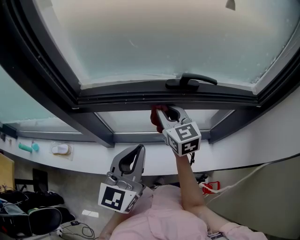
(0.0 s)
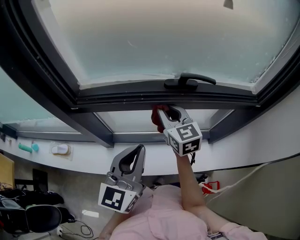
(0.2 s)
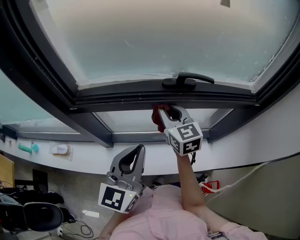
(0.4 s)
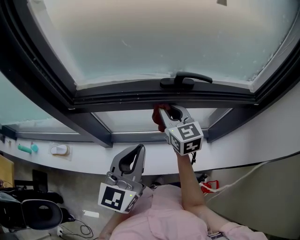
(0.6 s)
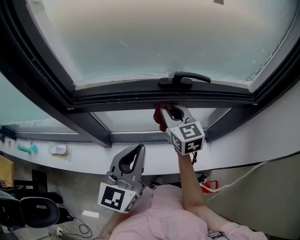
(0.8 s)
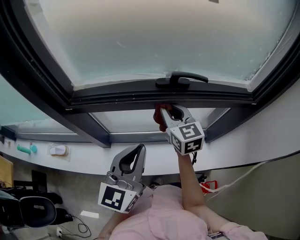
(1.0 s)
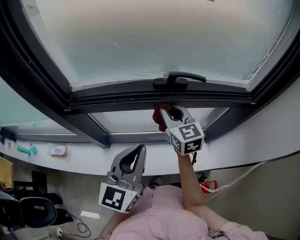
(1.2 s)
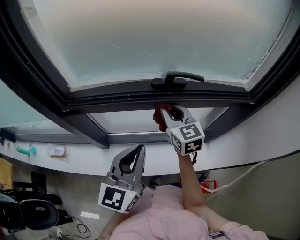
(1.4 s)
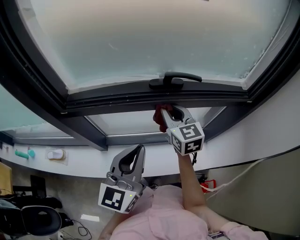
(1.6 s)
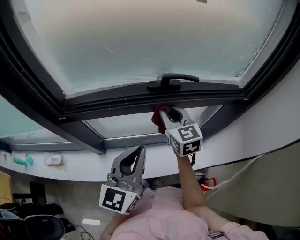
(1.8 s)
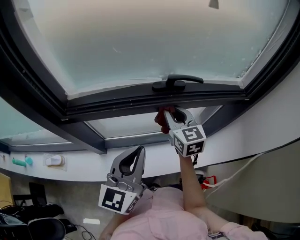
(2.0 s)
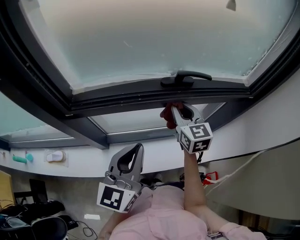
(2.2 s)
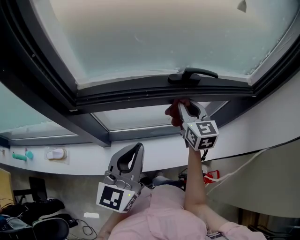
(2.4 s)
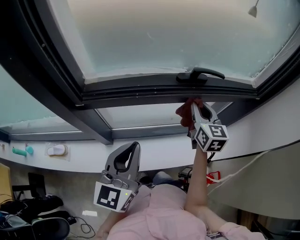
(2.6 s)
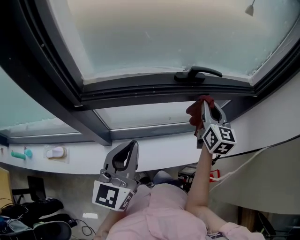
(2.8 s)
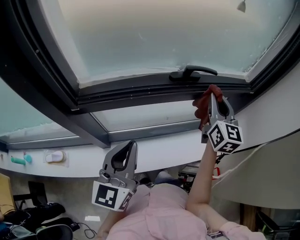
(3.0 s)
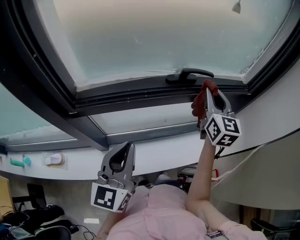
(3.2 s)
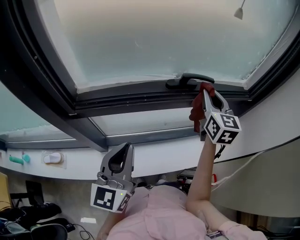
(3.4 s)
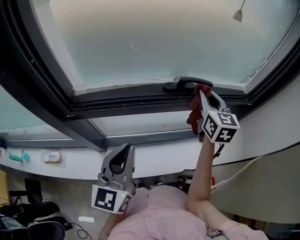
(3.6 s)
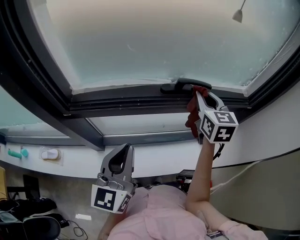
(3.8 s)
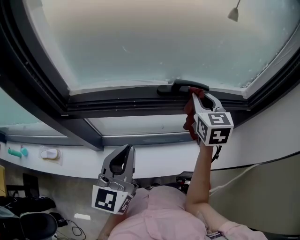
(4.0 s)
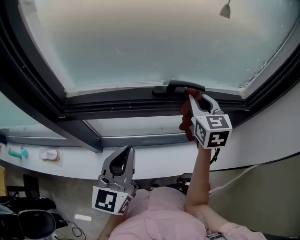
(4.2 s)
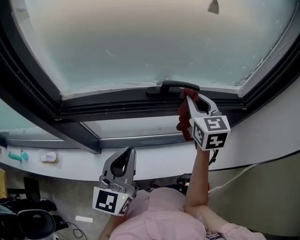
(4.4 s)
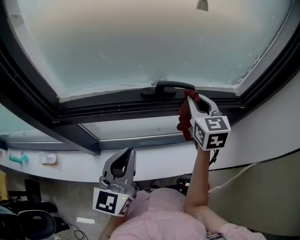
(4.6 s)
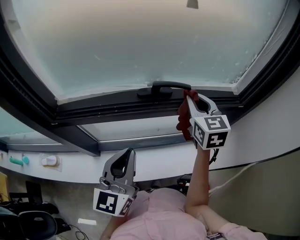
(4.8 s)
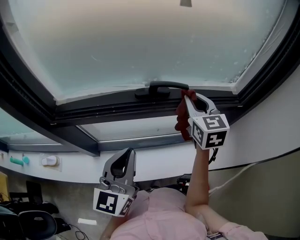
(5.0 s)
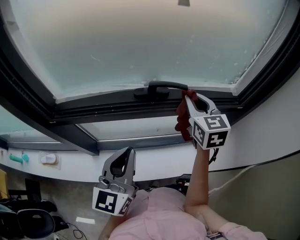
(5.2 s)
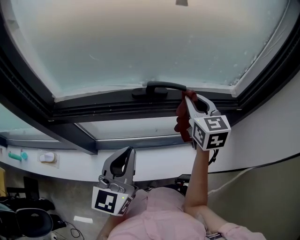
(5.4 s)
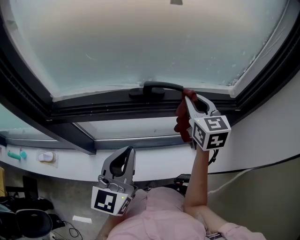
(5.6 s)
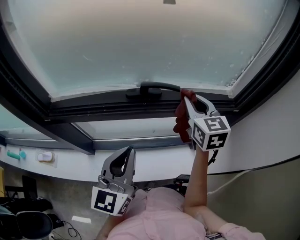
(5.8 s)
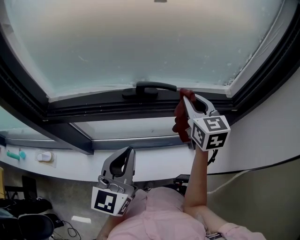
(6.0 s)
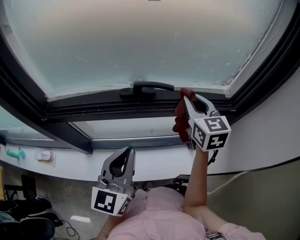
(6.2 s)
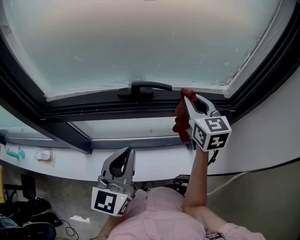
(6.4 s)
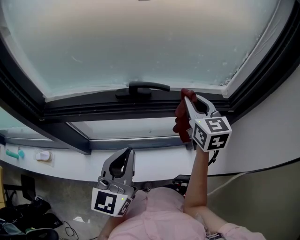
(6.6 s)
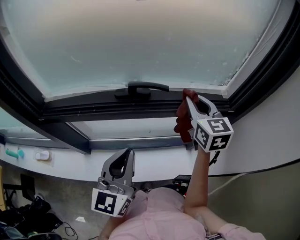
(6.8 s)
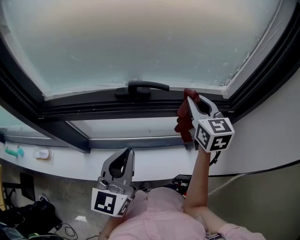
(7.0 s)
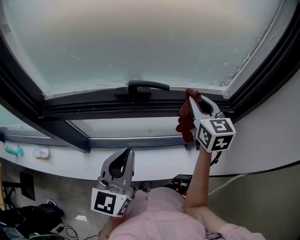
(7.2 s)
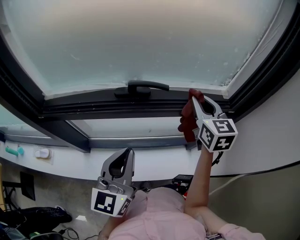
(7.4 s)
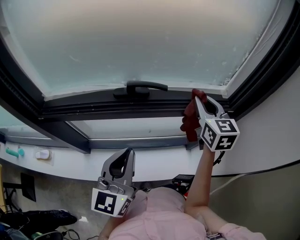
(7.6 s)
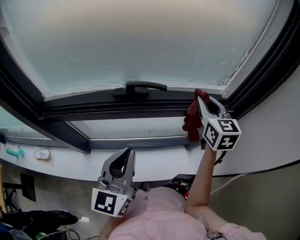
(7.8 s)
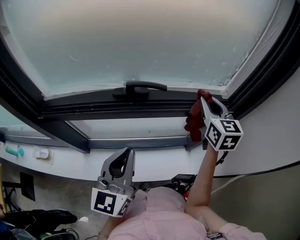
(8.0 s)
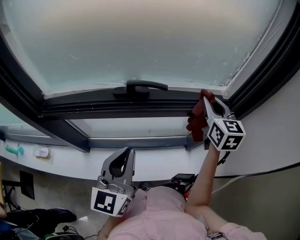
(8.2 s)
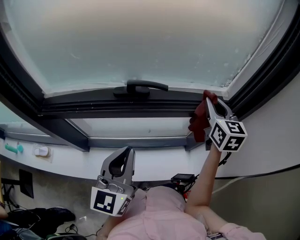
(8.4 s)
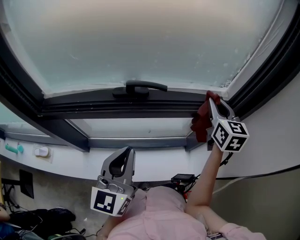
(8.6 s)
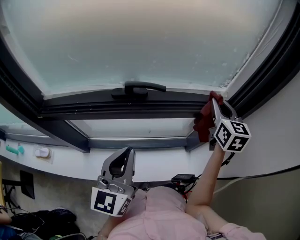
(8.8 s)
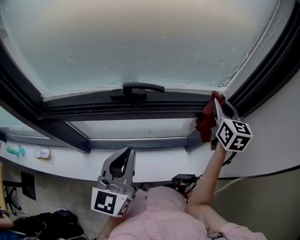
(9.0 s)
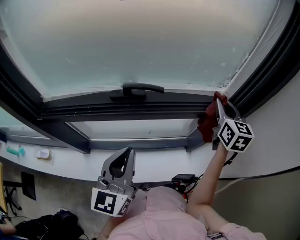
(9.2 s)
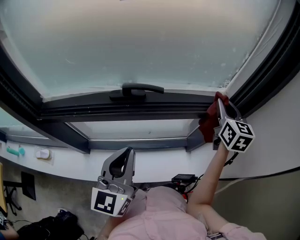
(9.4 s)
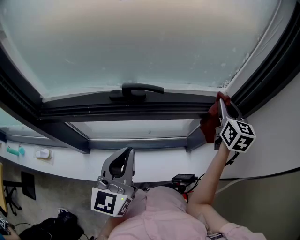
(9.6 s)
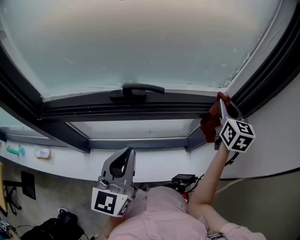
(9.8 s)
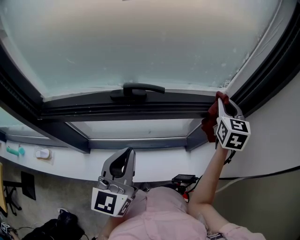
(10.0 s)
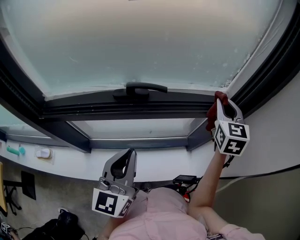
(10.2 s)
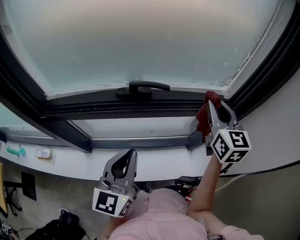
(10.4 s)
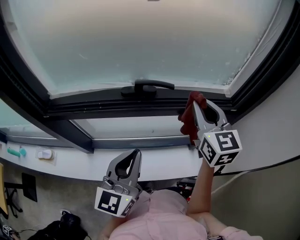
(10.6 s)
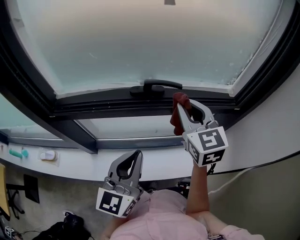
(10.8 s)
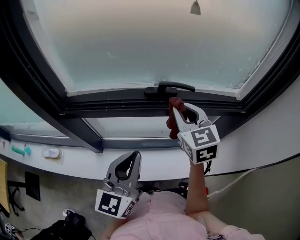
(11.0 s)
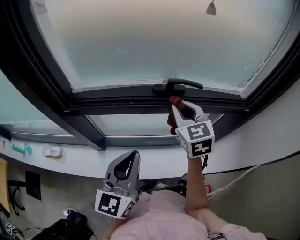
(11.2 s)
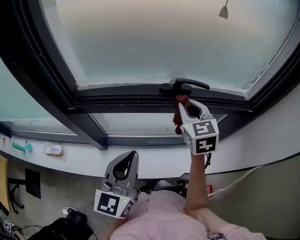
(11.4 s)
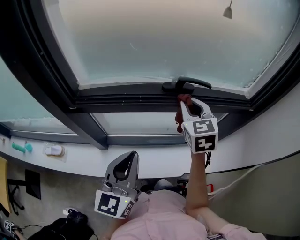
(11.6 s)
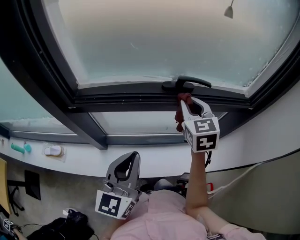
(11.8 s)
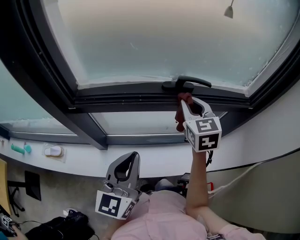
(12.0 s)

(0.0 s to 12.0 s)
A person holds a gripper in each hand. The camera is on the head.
0.0 s - 1.6 s: The right gripper heads to the right, covering approximately 5 cm.
1.6 s - 3.0 s: The right gripper shifts approximately 15 cm to the right and upward, and changes its angle by roughly 30 degrees. Meanwhile the left gripper travels to the left by some 10 cm.
3.0 s - 4.4 s: The right gripper goes about 5 cm forward, and swivels some 20 degrees, while the left gripper heads to the right, covering roughly 10 cm.
4.4 s - 6.0 s: Both grippers travel together to the right, approximately 5 cm.
6.0 s - 7.6 s: The right gripper shifts about 5 cm to the right.
7.6 s - 9.0 s: The right gripper goes approximately 10 cm to the right.
9.0 s - 10.4 s: The right gripper goes roughly 10 cm to the left and backward.
10.4 s - 12.0 s: The left gripper heads to the left, covering about 15 cm. Meanwhile the right gripper travels to the left by approximately 25 cm.

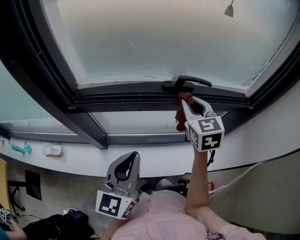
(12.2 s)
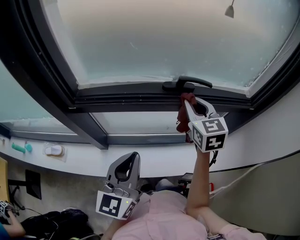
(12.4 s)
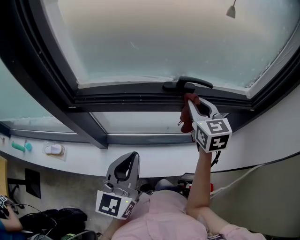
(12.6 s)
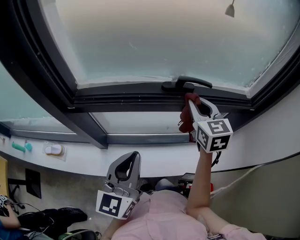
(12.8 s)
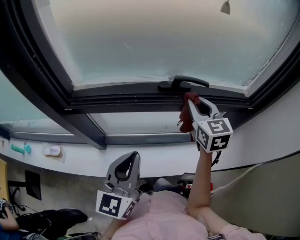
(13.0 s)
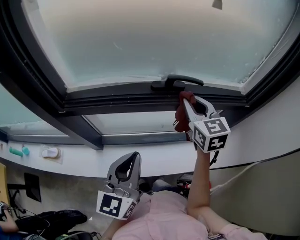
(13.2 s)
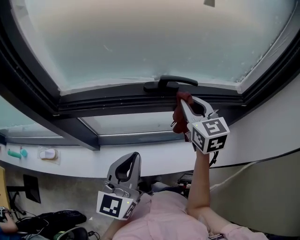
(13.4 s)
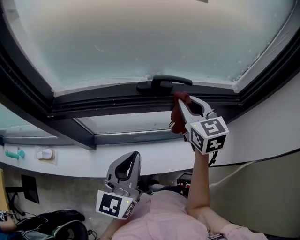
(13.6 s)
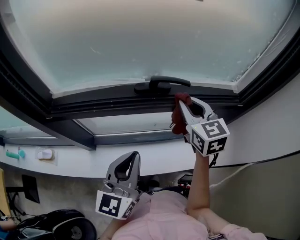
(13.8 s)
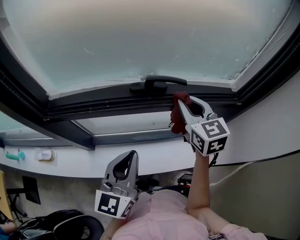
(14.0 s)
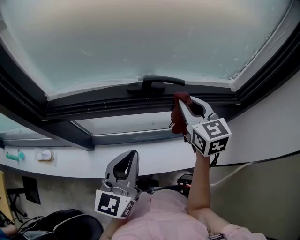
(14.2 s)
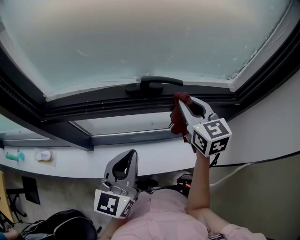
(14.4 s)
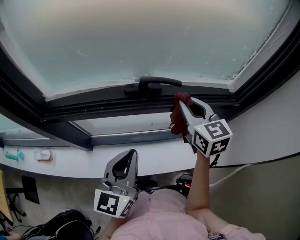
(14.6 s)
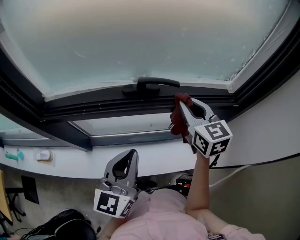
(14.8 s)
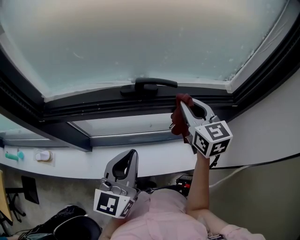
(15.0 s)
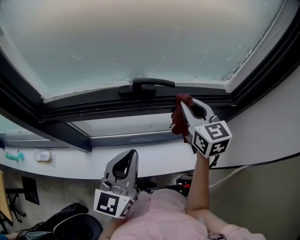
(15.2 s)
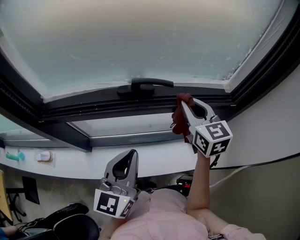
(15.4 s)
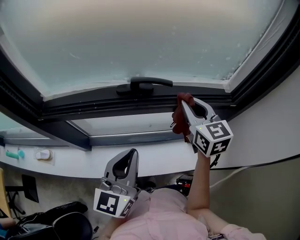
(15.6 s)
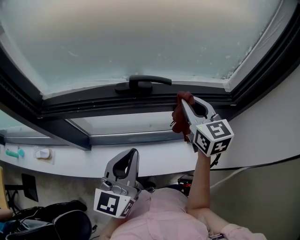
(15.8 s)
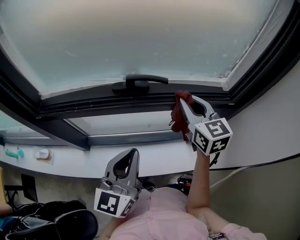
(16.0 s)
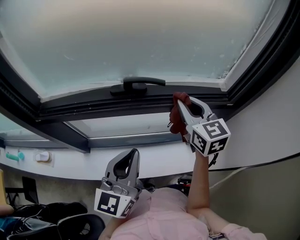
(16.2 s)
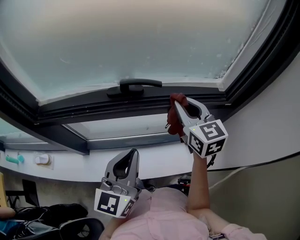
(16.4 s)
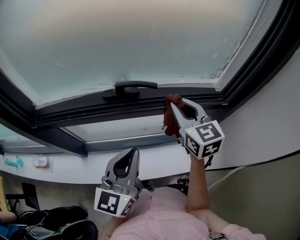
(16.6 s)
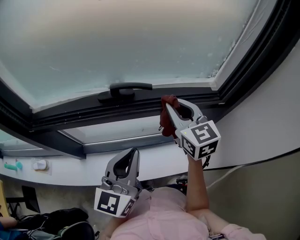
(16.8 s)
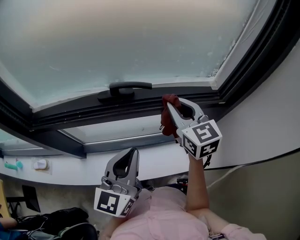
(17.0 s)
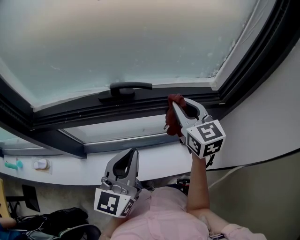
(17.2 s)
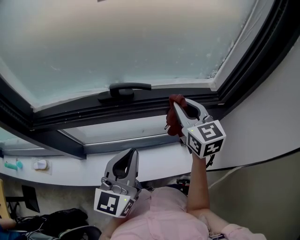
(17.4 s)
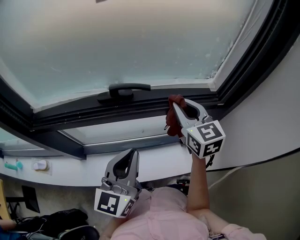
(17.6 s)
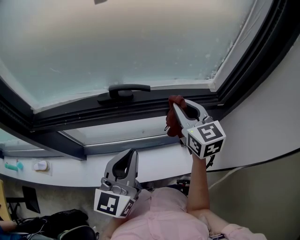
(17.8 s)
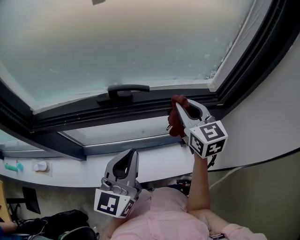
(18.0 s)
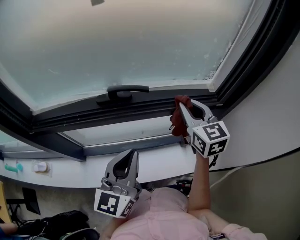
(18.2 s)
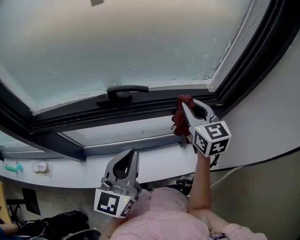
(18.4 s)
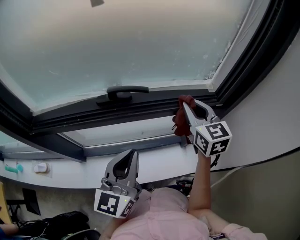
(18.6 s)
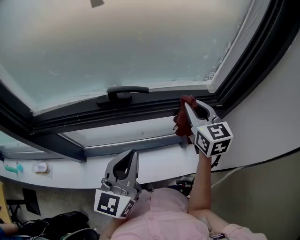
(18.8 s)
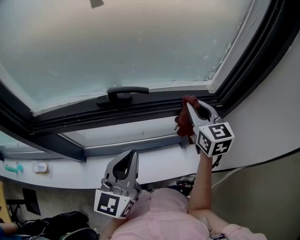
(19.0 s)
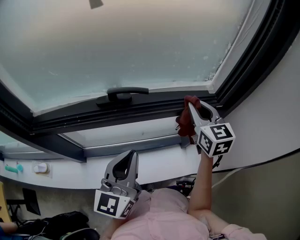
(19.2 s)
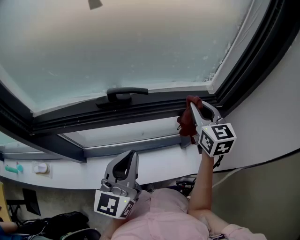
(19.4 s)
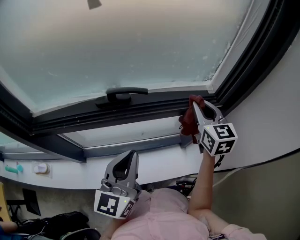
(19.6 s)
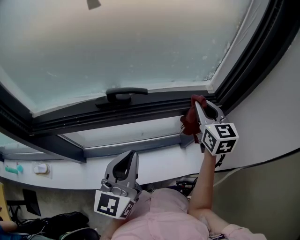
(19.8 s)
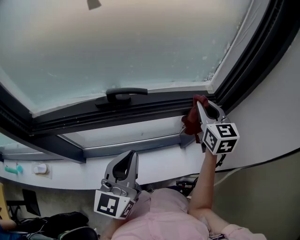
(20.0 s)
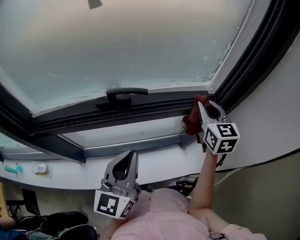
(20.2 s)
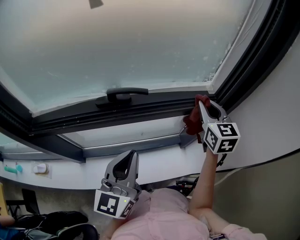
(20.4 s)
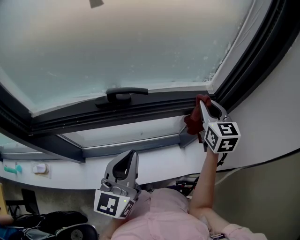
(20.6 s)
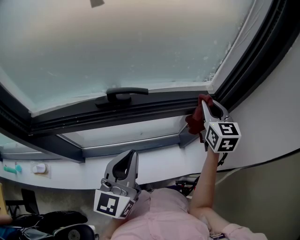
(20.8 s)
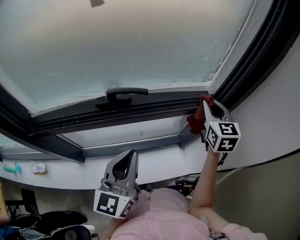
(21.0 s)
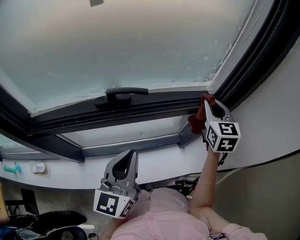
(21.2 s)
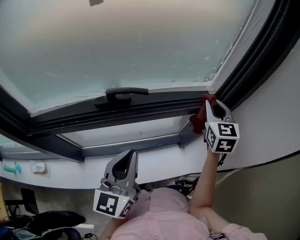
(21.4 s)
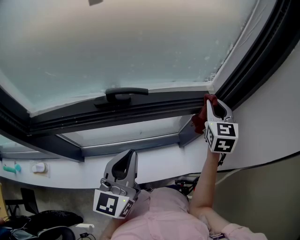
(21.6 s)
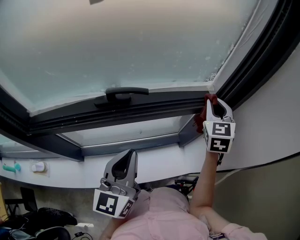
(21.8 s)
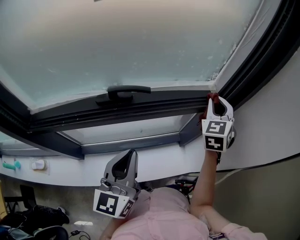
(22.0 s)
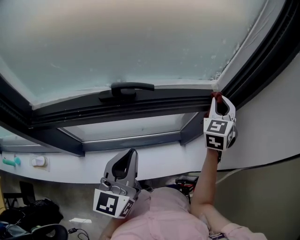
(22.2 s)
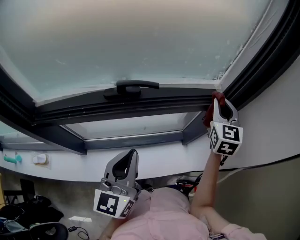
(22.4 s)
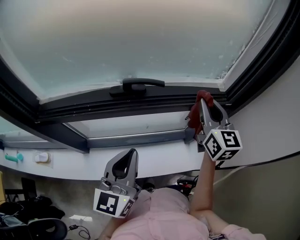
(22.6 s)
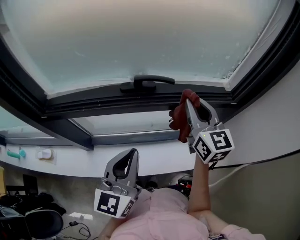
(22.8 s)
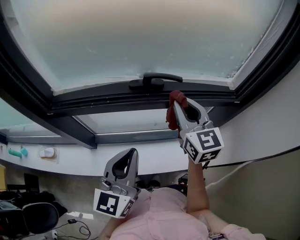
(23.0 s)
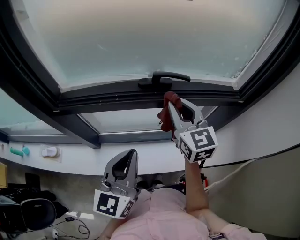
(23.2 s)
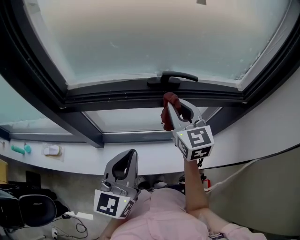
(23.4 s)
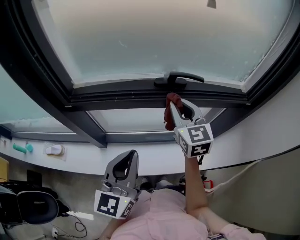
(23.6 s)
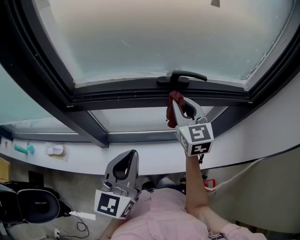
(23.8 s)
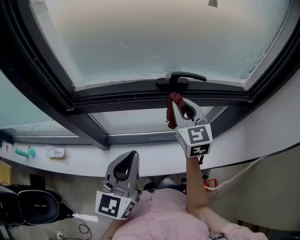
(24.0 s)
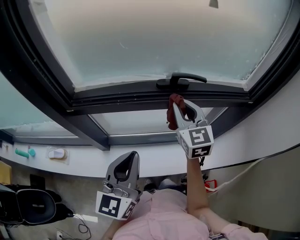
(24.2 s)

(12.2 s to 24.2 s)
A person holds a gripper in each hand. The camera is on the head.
12.2 s - 13.8 s: The two grippers go about 10 cm to the right.
13.8 s - 15.2 s: The right gripper travels to the right by roughly 5 cm.
15.2 s - 16.6 s: The left gripper ends up approximately 5 cm from where it was.
16.6 s - 18.2 s: The right gripper shifts roughly 5 cm to the right.
18.2 s - 19.8 s: The right gripper is displaced to the right by roughly 5 cm.
19.8 s - 21.2 s: There are only small adjustments of the grippers.
21.2 s - 22.6 s: The right gripper moves to the left and backward, some 10 cm.
22.6 s - 24.2 s: The right gripper goes about 25 cm to the left. Meanwhile the left gripper moves to the left, roughly 15 cm.
